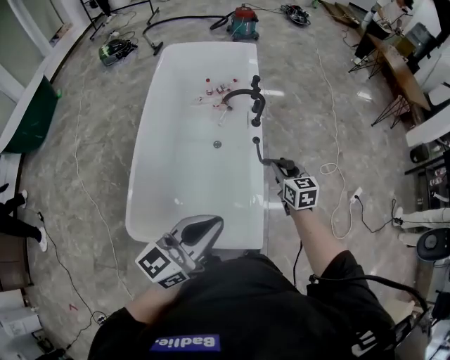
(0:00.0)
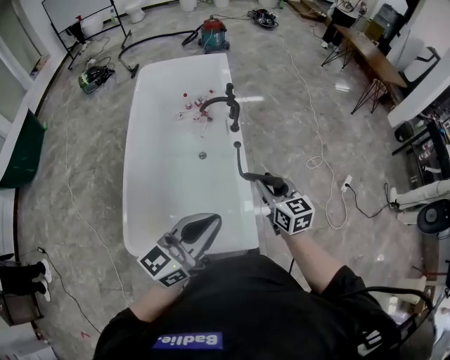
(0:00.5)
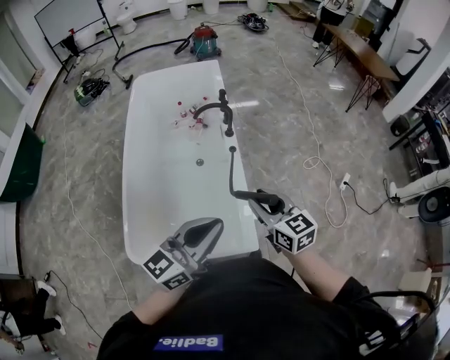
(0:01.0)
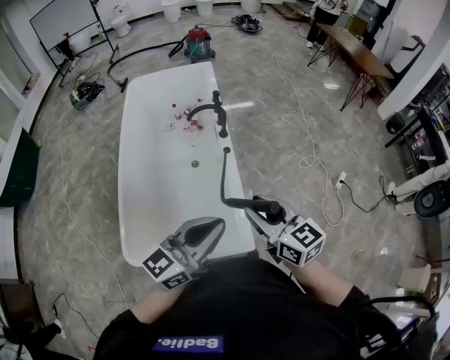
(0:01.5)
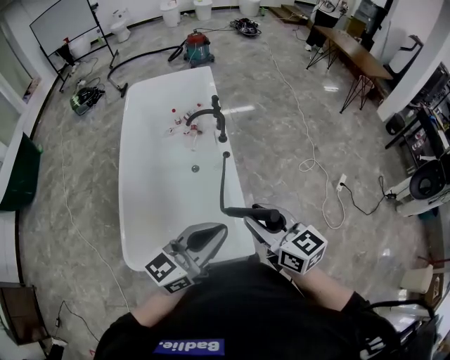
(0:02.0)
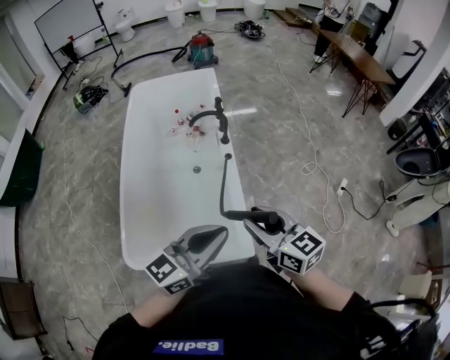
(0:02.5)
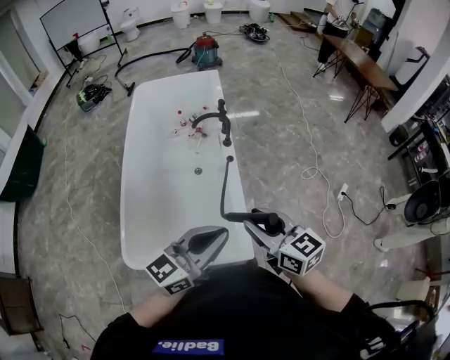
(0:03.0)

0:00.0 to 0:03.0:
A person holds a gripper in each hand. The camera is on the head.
0:00.0 to 0:01.5: The right gripper heads backward and upward, covering about 25 cm. Meanwhile the left gripper shifts approximately 10 cm to the right.
0:01.5 to 0:03.0: The grippers make only small movements.

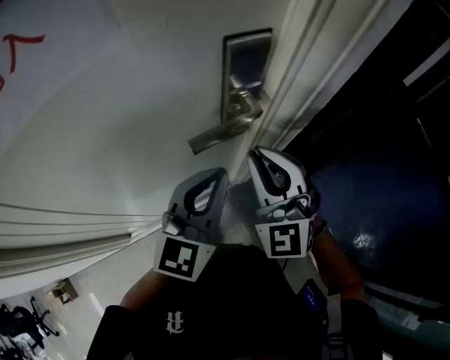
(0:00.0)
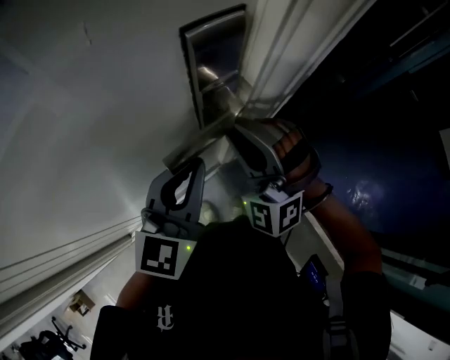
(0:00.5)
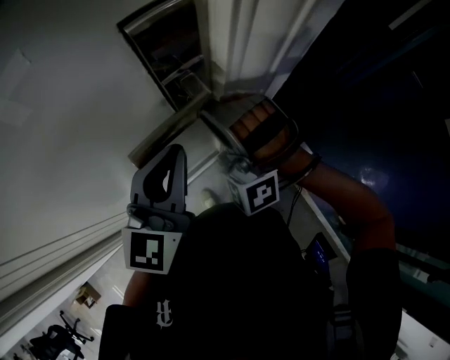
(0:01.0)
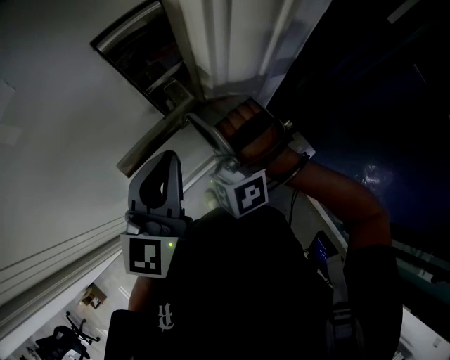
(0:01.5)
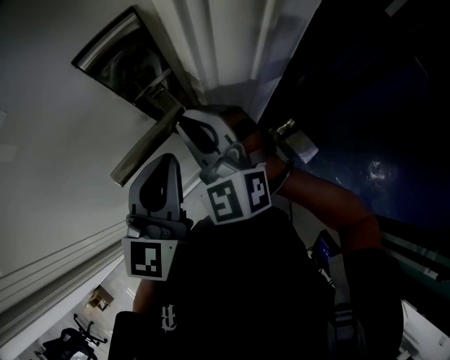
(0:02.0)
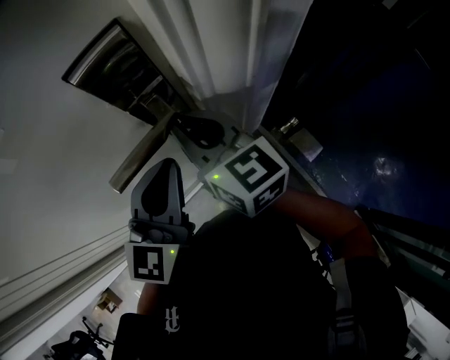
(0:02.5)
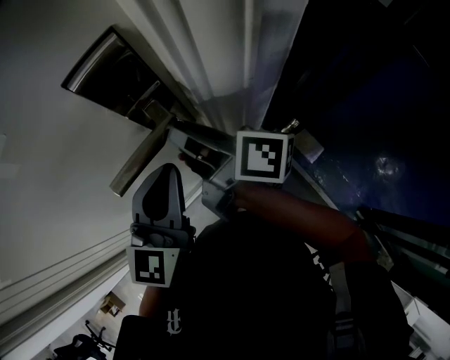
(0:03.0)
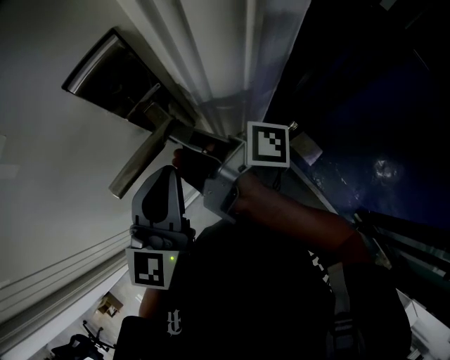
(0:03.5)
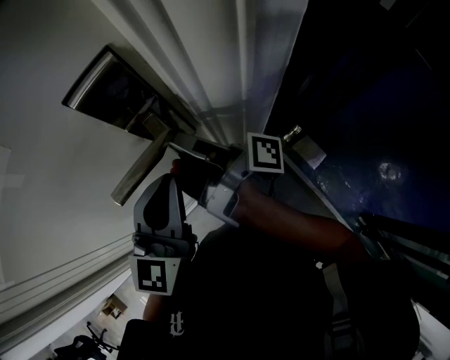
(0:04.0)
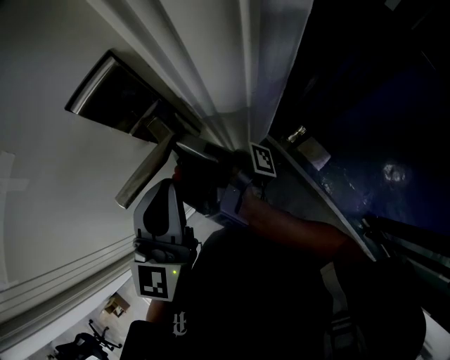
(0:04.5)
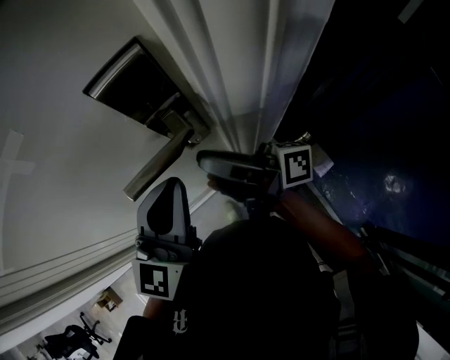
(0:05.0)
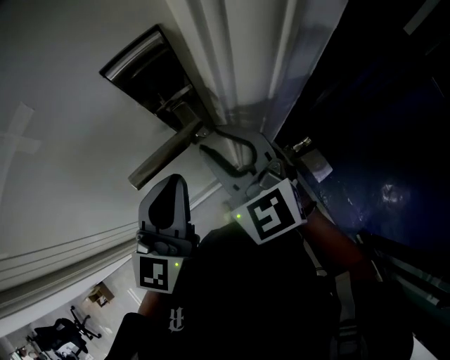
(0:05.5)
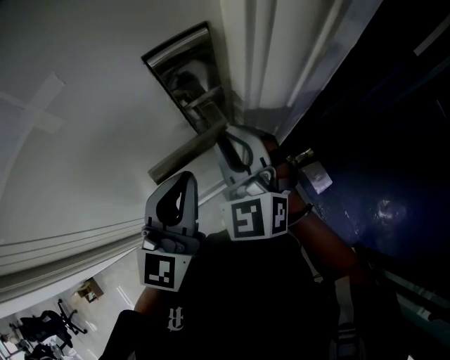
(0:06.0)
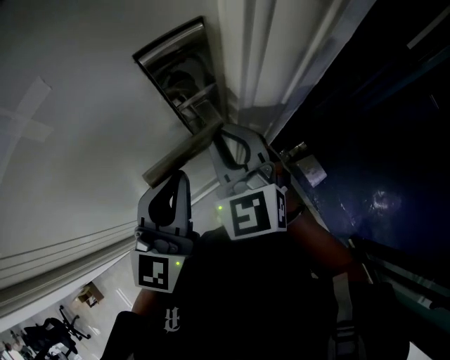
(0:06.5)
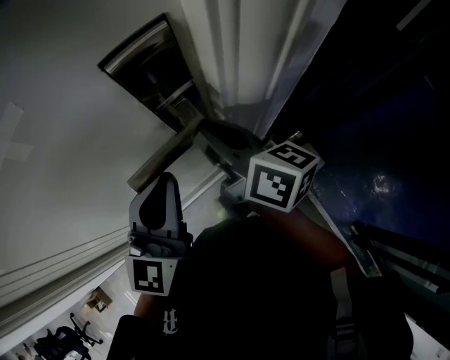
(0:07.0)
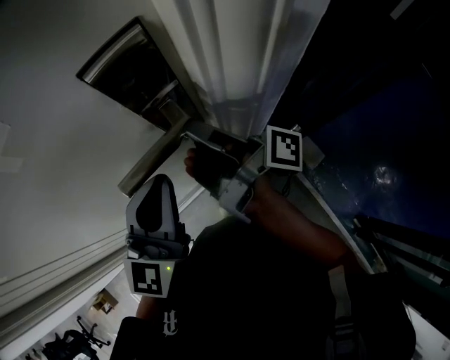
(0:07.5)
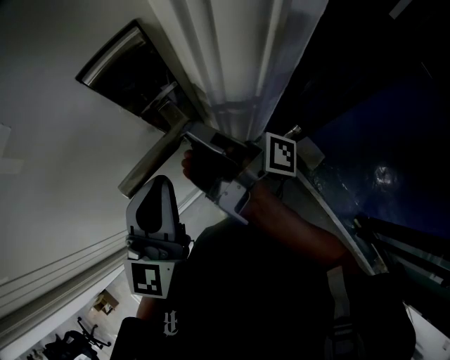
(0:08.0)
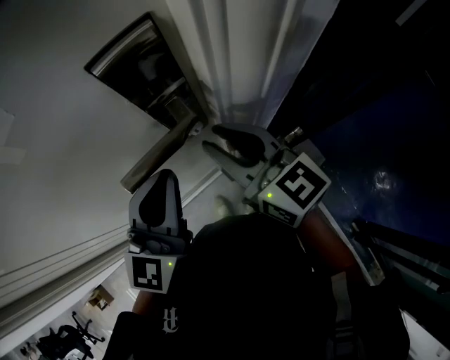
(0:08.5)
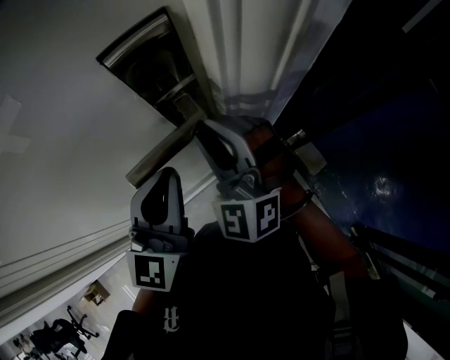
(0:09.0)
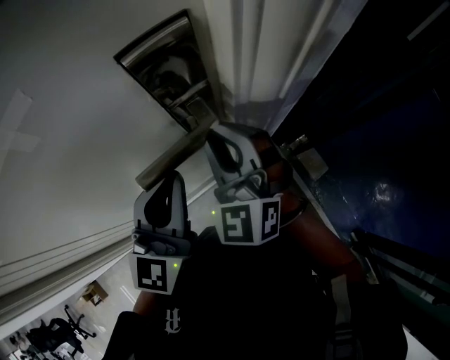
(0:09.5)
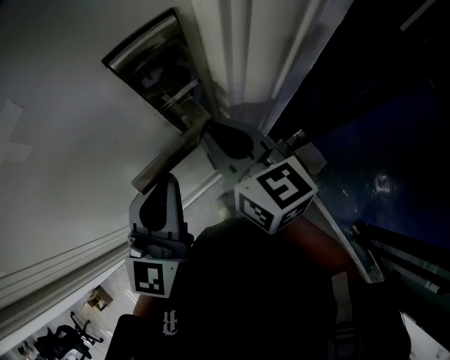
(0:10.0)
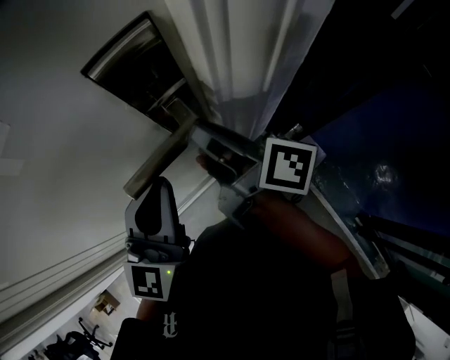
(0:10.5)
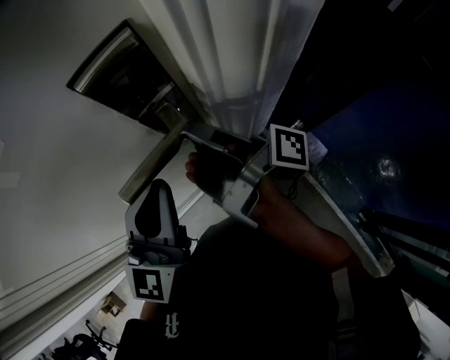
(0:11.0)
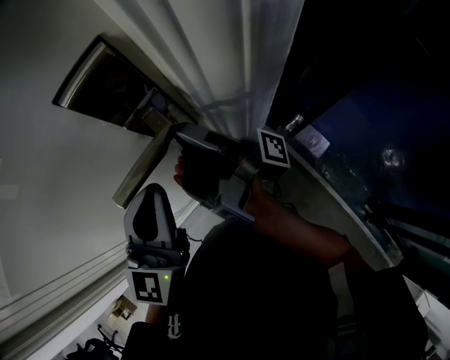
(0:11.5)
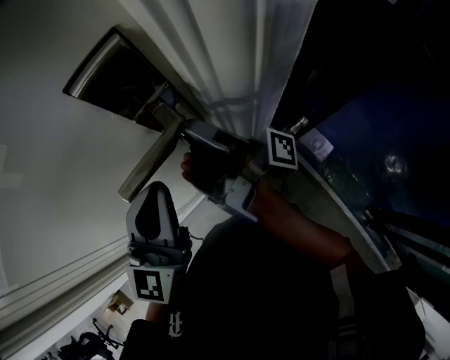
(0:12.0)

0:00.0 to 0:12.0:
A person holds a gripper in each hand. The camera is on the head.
0:00.0 to 0:02.0: The right gripper shifts approximately 10 cm forward. The left gripper is displaced forward by about 5 cm.
0:02.0 to 0:04.0: The right gripper rotates around the line of its fingers by some 140 degrees, clockwise from behind.
0:04.0 to 0:06.0: The right gripper rotates around the line of its fingers by roughly 140 degrees, counterclockwise from behind.
0:06.0 to 0:08.0: The right gripper rolls clockwise, seen from behind, by about 130 degrees.
0:08.0 to 0:10.0: The right gripper twists approximately 80 degrees counterclockwise, seen from behind.
0:10.0 to 0:12.0: The right gripper rotates around the line of its fingers by about 90 degrees, clockwise from behind.

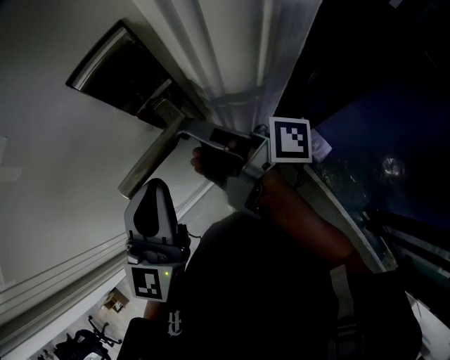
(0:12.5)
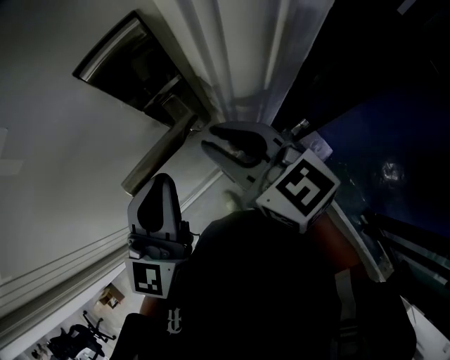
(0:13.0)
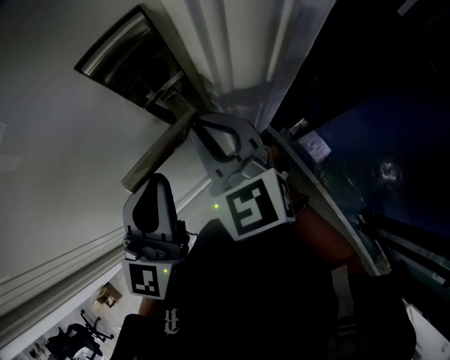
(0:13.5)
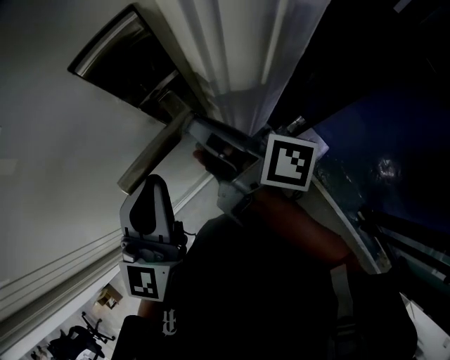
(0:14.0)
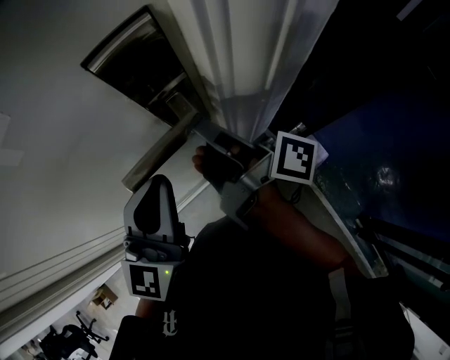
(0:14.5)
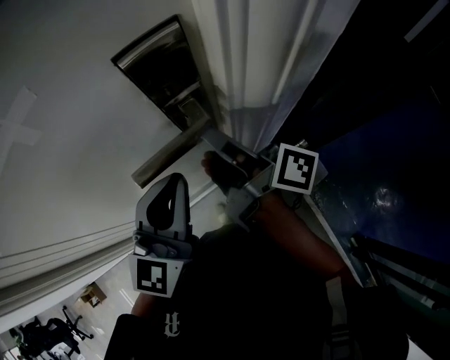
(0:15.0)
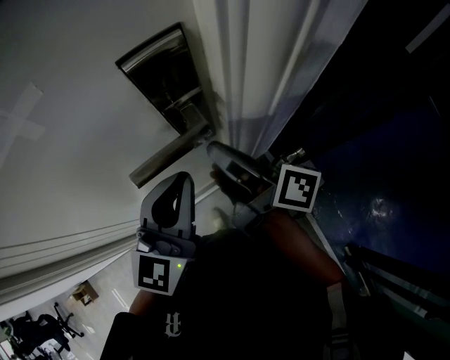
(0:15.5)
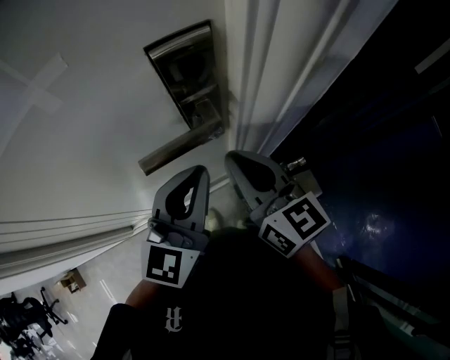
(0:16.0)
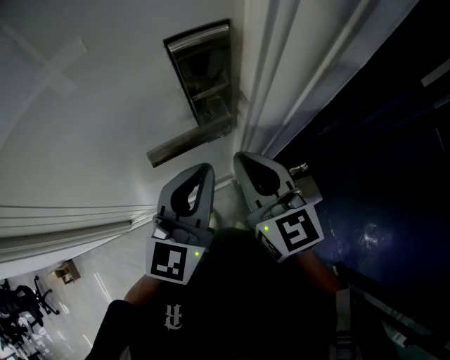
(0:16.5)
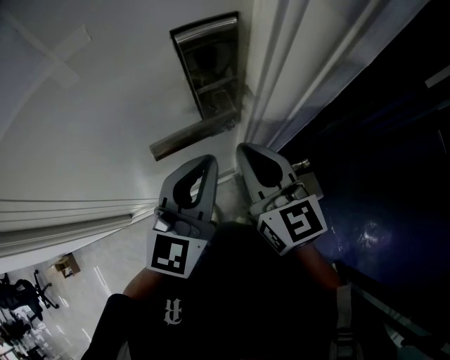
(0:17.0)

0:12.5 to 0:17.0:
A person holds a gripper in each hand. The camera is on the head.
0:14.5 to 0:17.0: The left gripper ends up about 5 cm from where it was. The right gripper shifts approximately 5 cm backward, and twists some 80 degrees counterclockwise, seen from behind.

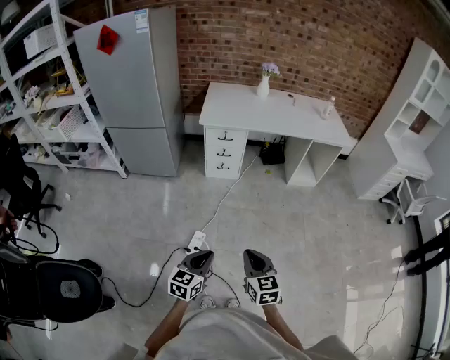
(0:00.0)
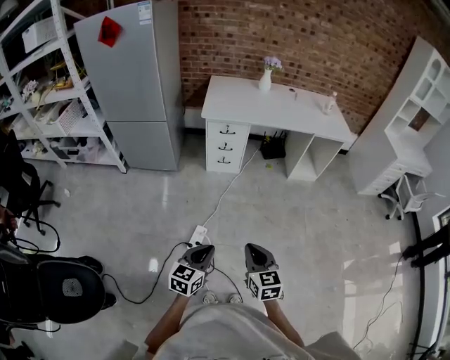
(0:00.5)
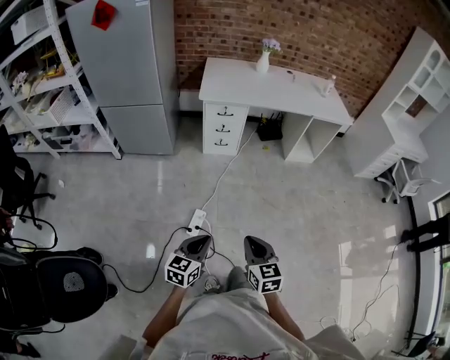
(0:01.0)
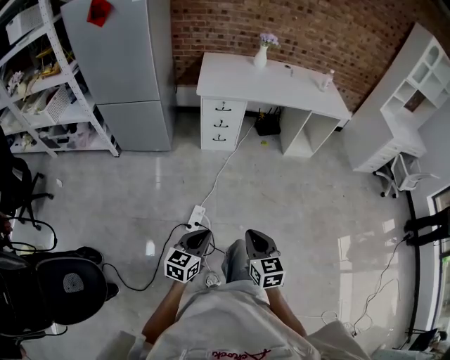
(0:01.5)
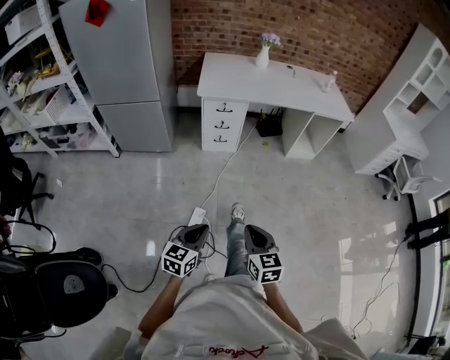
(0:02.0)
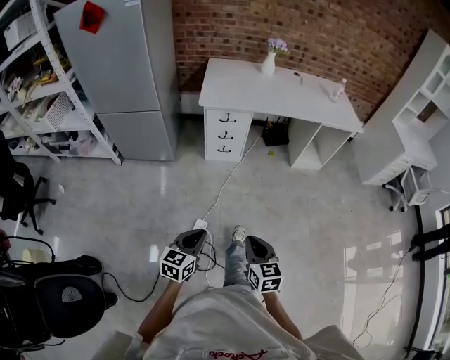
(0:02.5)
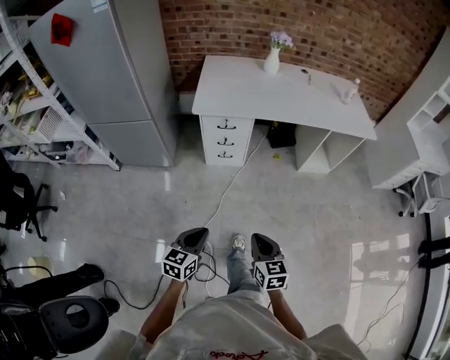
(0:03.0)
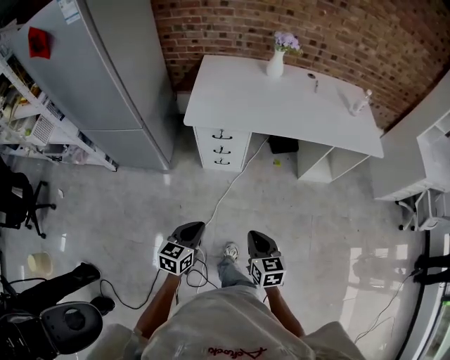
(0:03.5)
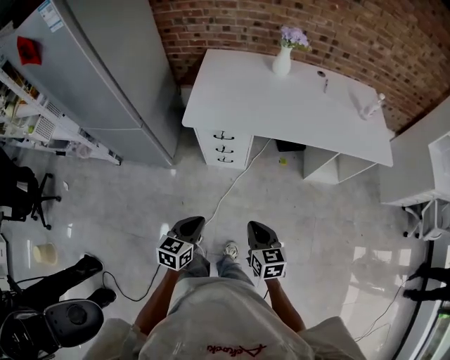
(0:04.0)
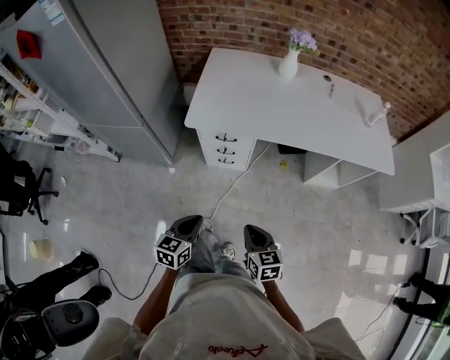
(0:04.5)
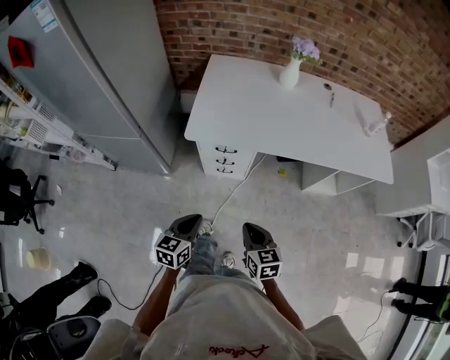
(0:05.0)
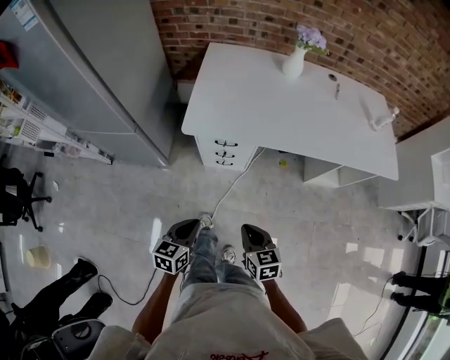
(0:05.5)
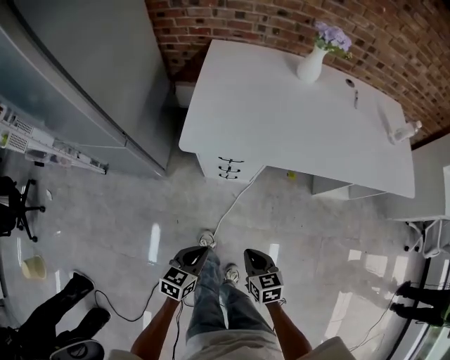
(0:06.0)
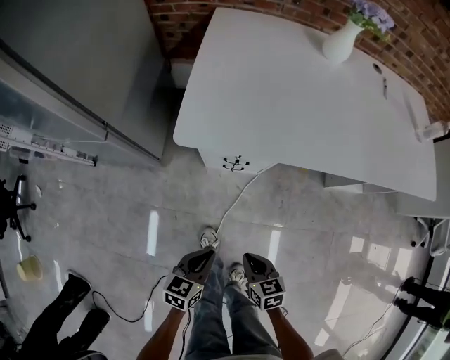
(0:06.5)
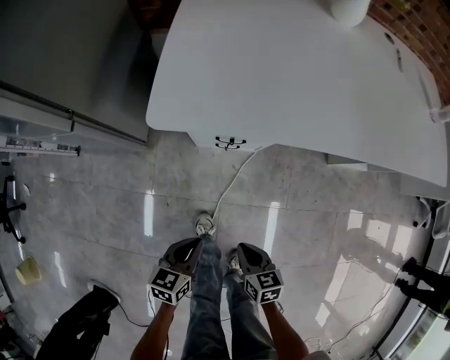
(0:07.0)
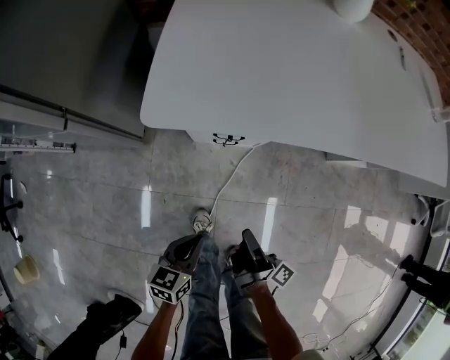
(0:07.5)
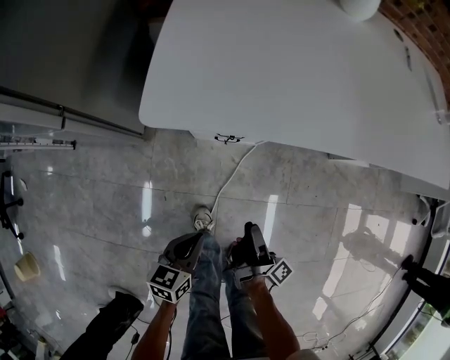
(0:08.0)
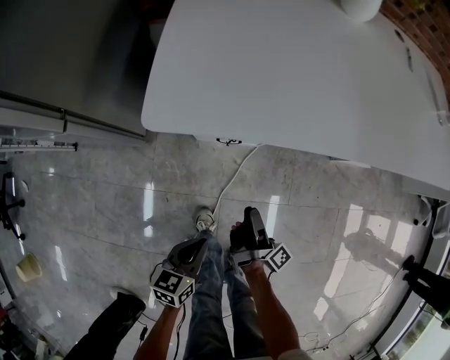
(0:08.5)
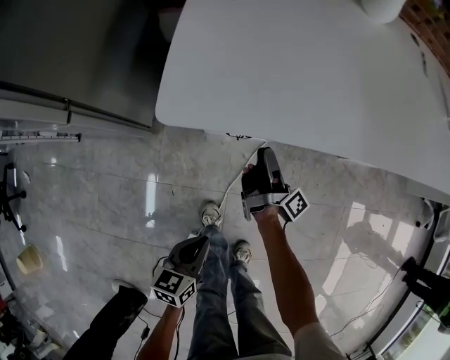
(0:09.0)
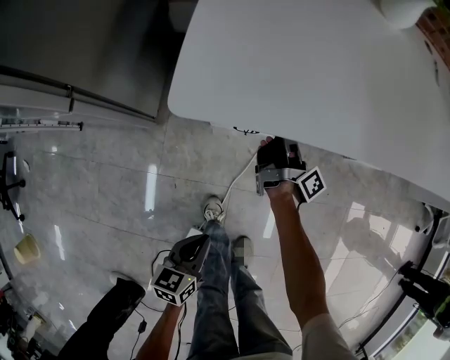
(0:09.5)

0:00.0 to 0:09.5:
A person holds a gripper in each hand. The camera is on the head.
0:00.0 to 0:02.0: Both grippers travel together to the left, approximately 5 cm.
0:02.0 to 0:04.0: The pair of grippers is taken forward, about 40 cm.
0:04.0 to 0:05.5: Both grippers travel together forward and to the left, approximately 10 cm.
0:05.5 to 0:07.5: The left gripper heads downward, covering about 25 cm, while the right gripper goes approximately 25 cm downward and forward, and rolls clockwise, seen from behind, by approximately 80 degrees.
0:07.5 to 0:09.5: The right gripper moves forward, roughly 25 cm, and opens.
